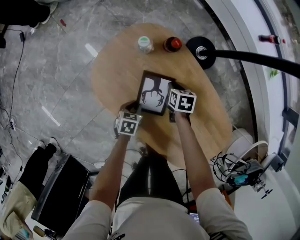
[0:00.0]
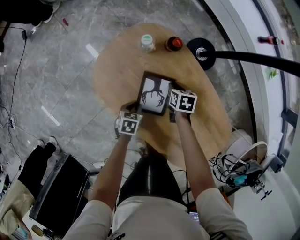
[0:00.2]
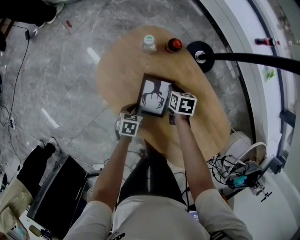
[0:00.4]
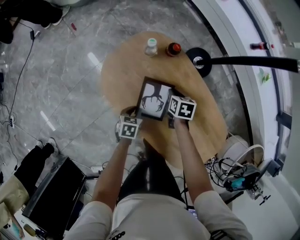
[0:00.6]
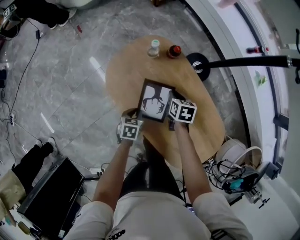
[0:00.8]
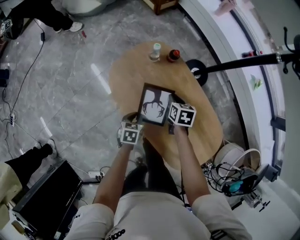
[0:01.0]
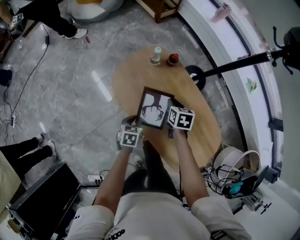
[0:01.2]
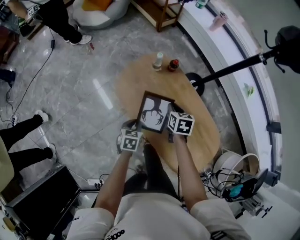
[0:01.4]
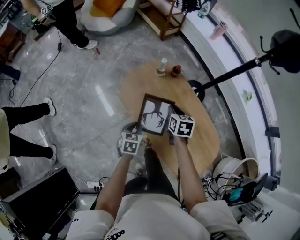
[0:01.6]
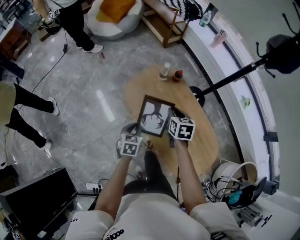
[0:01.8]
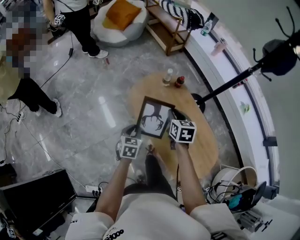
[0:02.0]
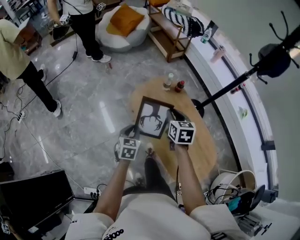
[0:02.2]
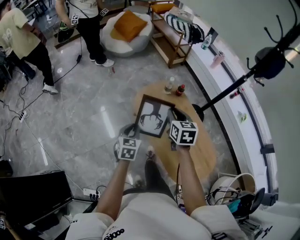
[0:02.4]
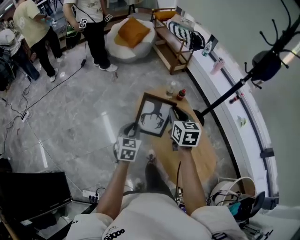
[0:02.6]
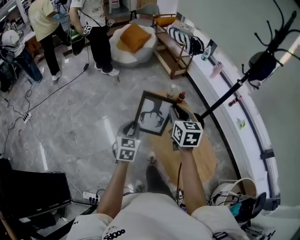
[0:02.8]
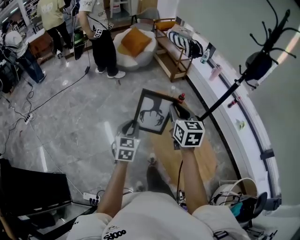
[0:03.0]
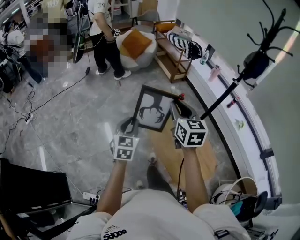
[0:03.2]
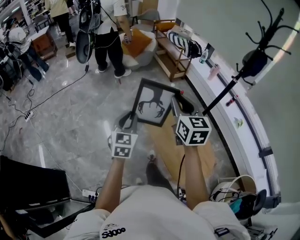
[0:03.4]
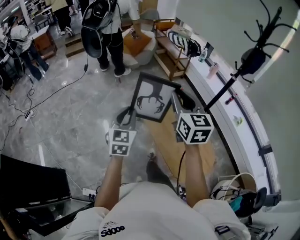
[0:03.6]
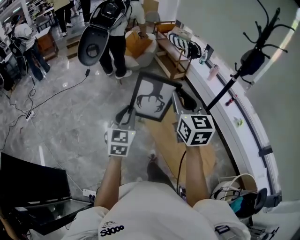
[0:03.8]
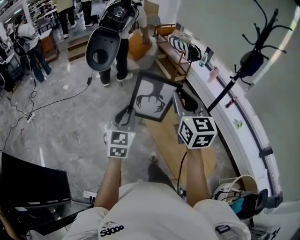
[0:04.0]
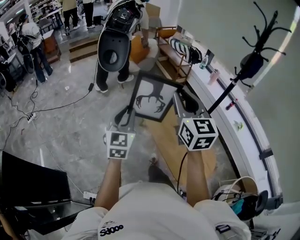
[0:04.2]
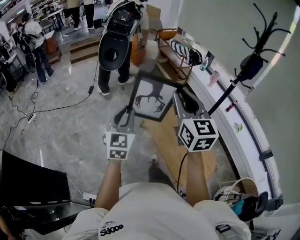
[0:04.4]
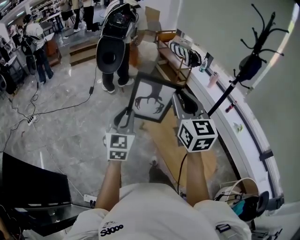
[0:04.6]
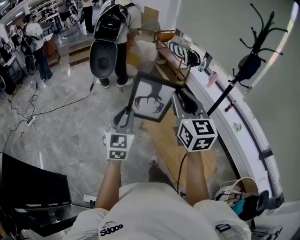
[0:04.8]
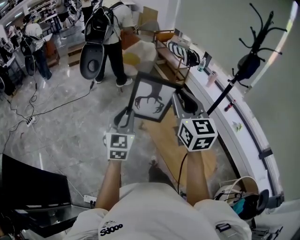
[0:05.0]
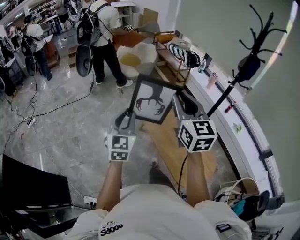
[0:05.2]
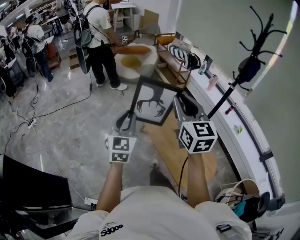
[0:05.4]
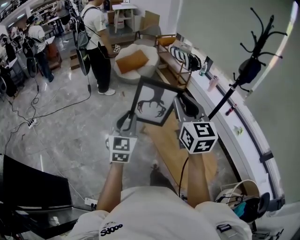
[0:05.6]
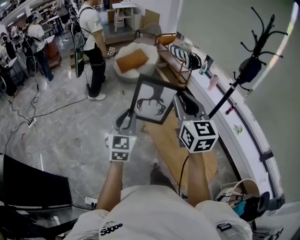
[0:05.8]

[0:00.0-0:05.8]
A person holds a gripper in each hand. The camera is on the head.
0:00.0 to 0:01.4: The two grippers go roughly 25 cm upward and backward.
0:01.4 to 0:02.8: Both grippers travel together upward, some 30 cm. The right gripper changes its angle by about 40 degrees; the left gripper turns by roughly 30 degrees.
0:02.8 to 0:04.4: Both grippers move upward and backward, about 25 cm. The left gripper swivels some 20 degrees, while the right gripper swivels about 30 degrees.
0:04.4 to 0:05.8: The two grippers keep their place.

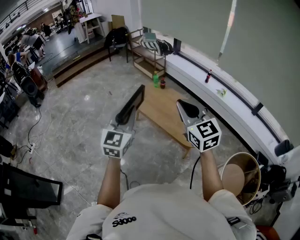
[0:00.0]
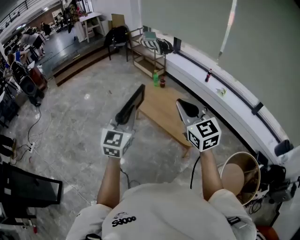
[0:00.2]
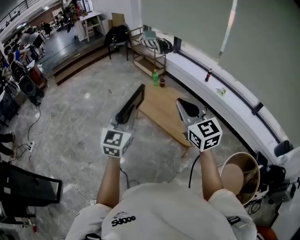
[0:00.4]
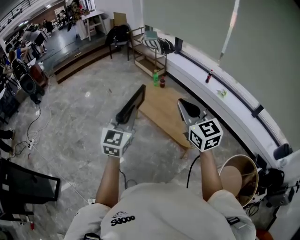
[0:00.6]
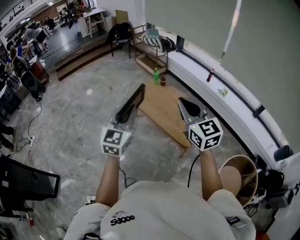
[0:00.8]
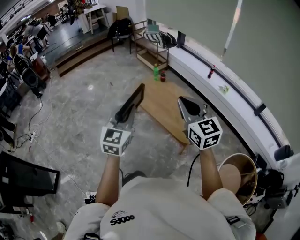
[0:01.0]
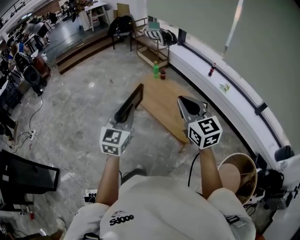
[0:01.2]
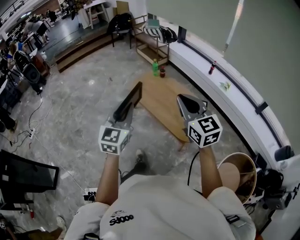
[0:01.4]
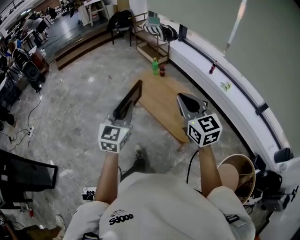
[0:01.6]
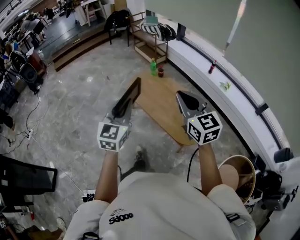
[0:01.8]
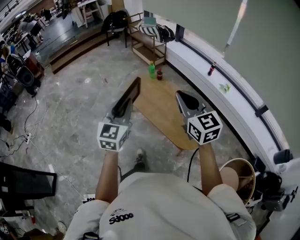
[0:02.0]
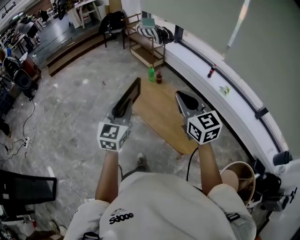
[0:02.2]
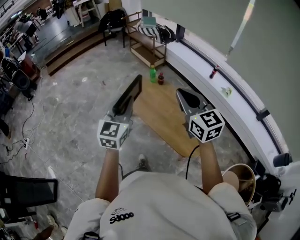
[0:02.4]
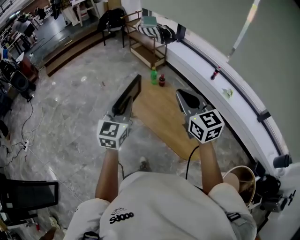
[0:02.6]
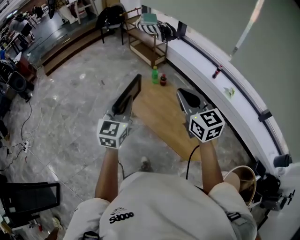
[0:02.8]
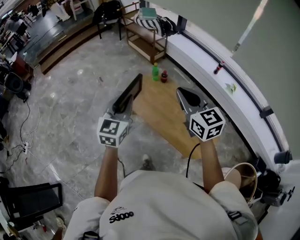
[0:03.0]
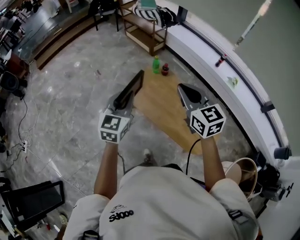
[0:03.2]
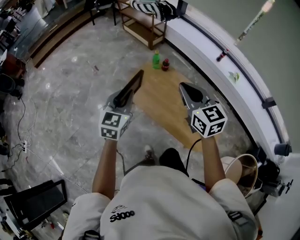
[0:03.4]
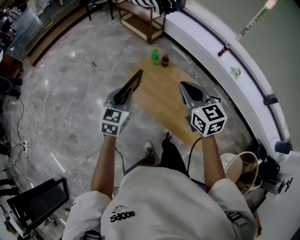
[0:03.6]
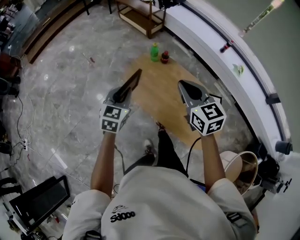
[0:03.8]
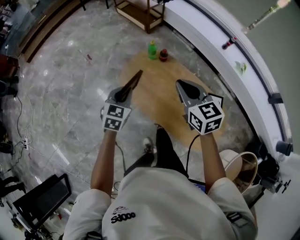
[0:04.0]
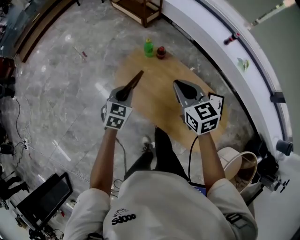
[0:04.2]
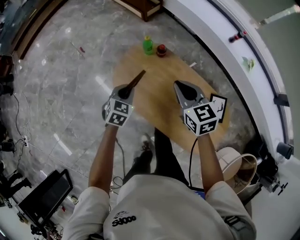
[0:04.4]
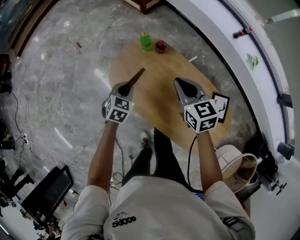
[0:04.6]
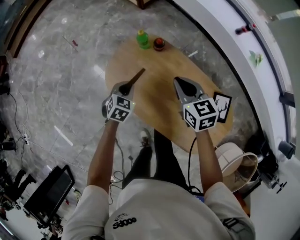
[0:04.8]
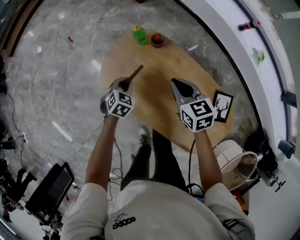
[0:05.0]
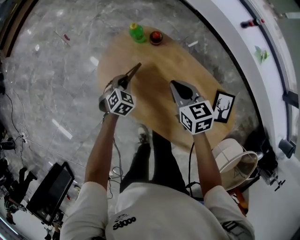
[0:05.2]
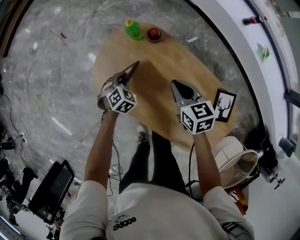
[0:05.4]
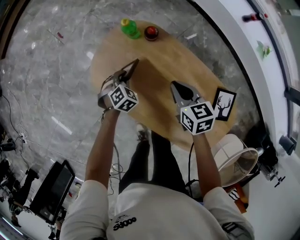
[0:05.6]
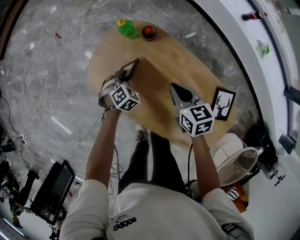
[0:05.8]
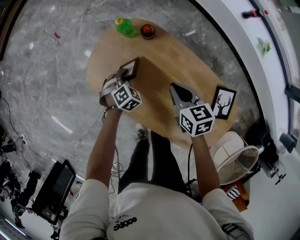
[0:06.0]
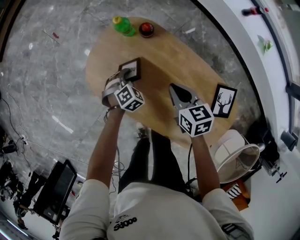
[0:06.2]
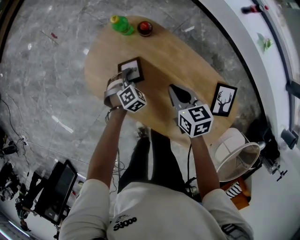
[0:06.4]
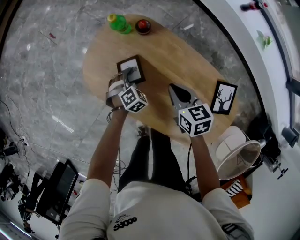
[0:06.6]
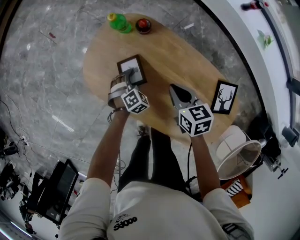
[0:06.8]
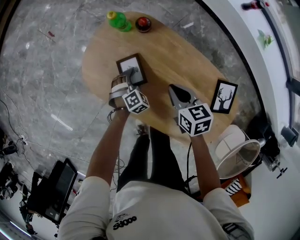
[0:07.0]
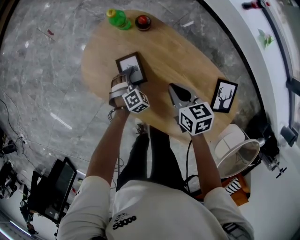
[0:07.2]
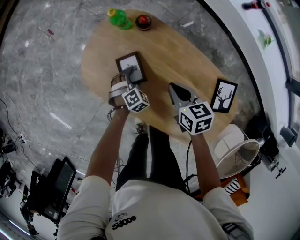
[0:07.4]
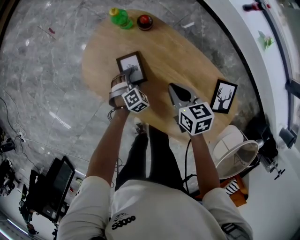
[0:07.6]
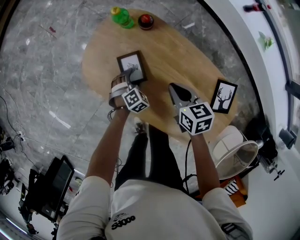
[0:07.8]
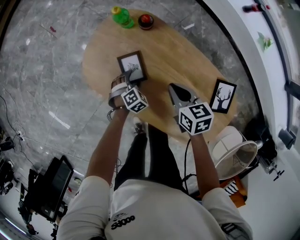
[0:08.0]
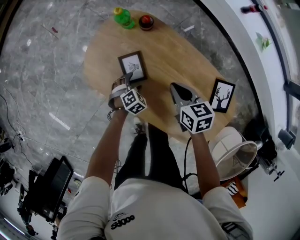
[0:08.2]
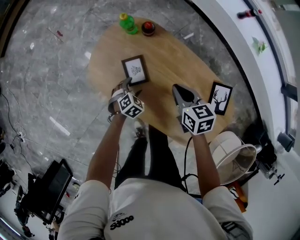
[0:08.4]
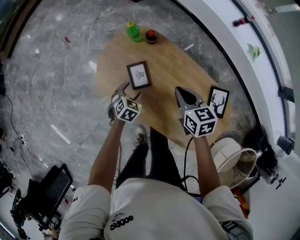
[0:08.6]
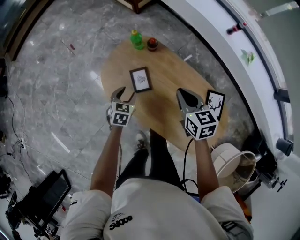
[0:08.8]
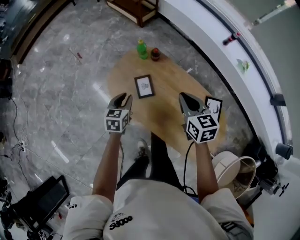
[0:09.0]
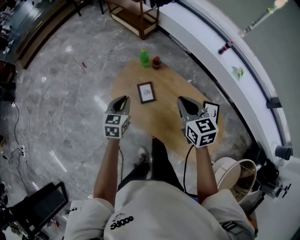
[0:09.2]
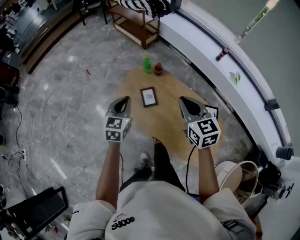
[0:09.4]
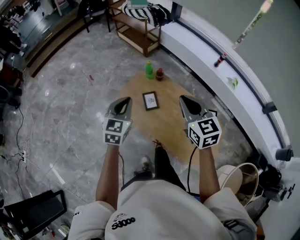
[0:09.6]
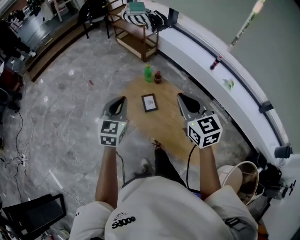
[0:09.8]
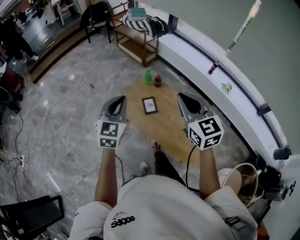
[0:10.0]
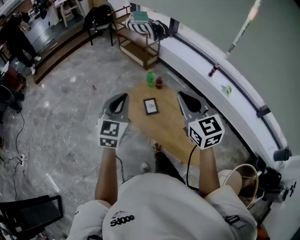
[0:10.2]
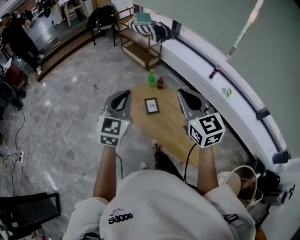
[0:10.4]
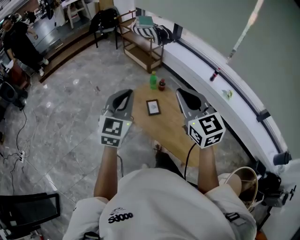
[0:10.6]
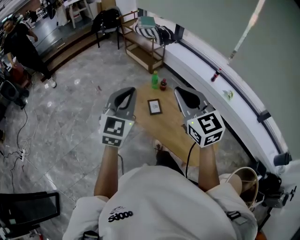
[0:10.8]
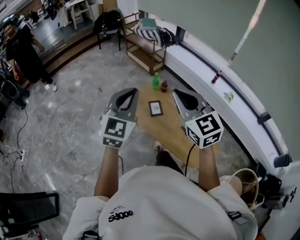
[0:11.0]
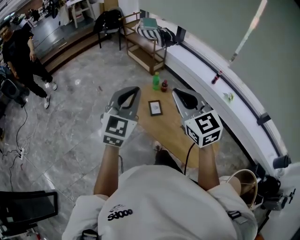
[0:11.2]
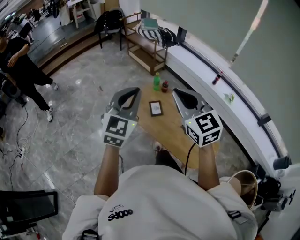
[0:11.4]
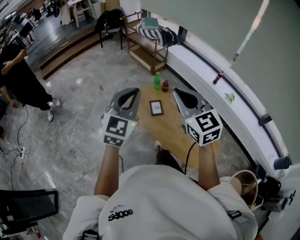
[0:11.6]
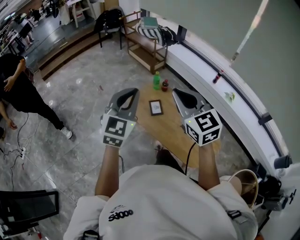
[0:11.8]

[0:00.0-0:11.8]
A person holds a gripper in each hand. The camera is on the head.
0:00.0 to 0:01.4: The grippers both shift to the right by some 10 cm.
0:01.4 to 0:03.0: Both grippers move forward, approximately 35 cm.
0:03.0 to 0:04.4: Both grippers travel together downward and forward, roughly 40 cm. The right gripper changes its angle by roughly 20 degrees. Meanwhile the left gripper points its fingers roughly 40 degrees further downward.
0:04.4 to 0:06.0: The grippers both shift downward by about 25 cm. The right gripper rotates some 20 degrees. The left gripper rotates about 30 degrees.
0:06.0 to 0:07.4: The left gripper is displaced backward and downward by roughly 10 cm, and opens up.
0:07.4 to 0:08.8: Both grippers travel together upward, approximately 20 cm. The left gripper rotates around the line of its fingers by some 40 degrees, counterclockwise from behind.
0:08.8 to 0:10.4: The left gripper travels upward by roughly 50 cm, tips its fingers upward by roughly 40 degrees, and closes, while the right gripper heads upward and backward, covering about 40 cm, and changes its angle by some 40 degrees.
0:10.4 to 0:11.8: The right gripper changes place by some 5 cm; the left gripper shifts by about 5 cm.

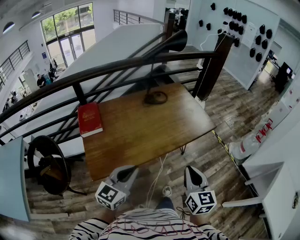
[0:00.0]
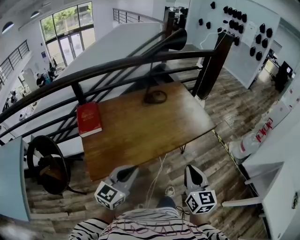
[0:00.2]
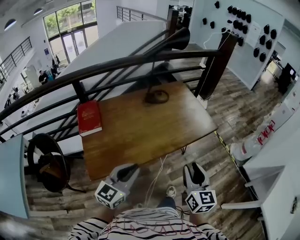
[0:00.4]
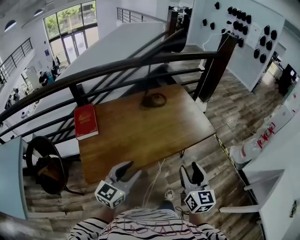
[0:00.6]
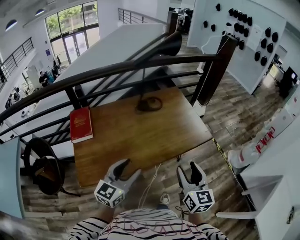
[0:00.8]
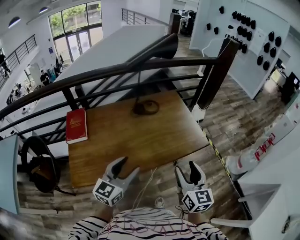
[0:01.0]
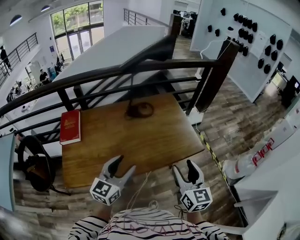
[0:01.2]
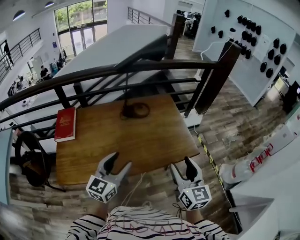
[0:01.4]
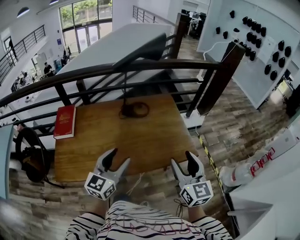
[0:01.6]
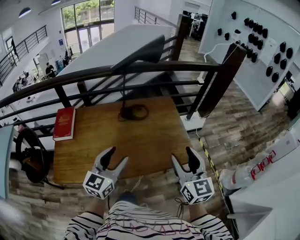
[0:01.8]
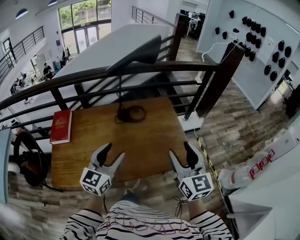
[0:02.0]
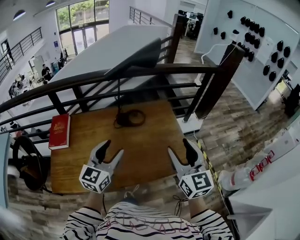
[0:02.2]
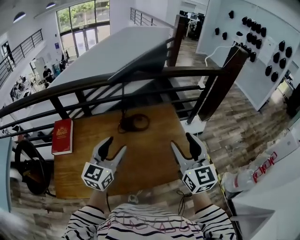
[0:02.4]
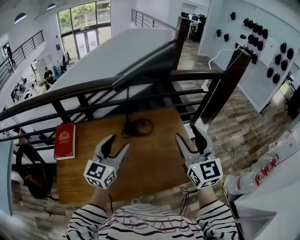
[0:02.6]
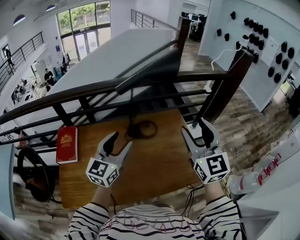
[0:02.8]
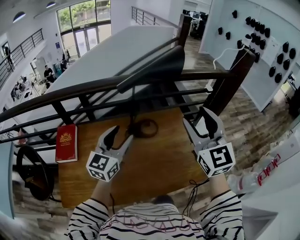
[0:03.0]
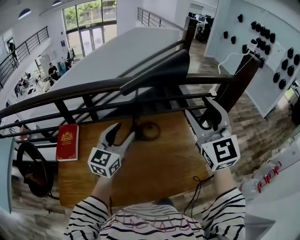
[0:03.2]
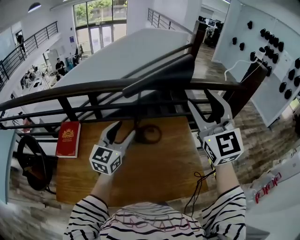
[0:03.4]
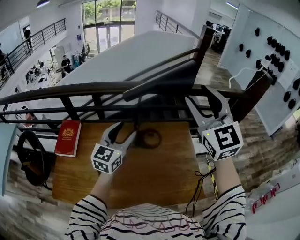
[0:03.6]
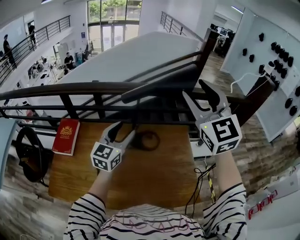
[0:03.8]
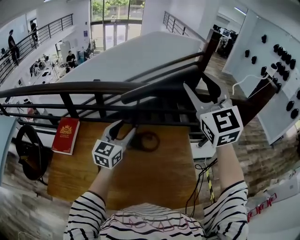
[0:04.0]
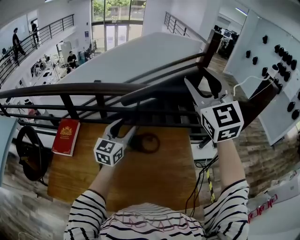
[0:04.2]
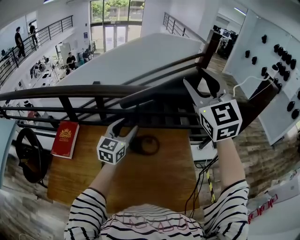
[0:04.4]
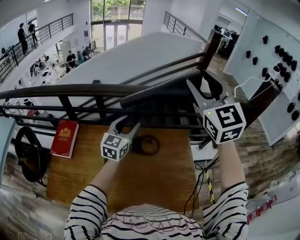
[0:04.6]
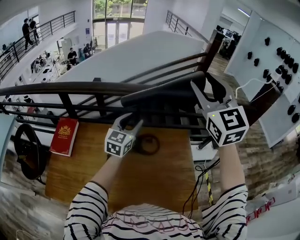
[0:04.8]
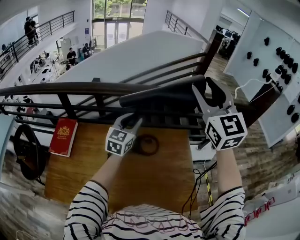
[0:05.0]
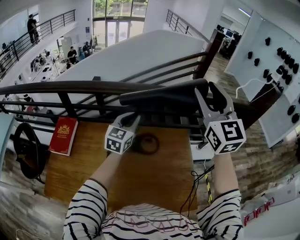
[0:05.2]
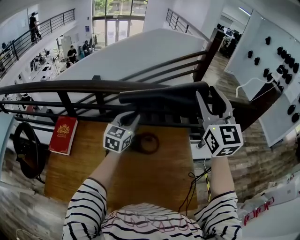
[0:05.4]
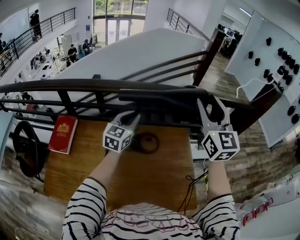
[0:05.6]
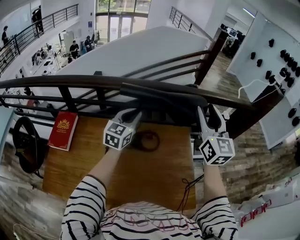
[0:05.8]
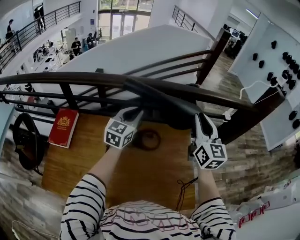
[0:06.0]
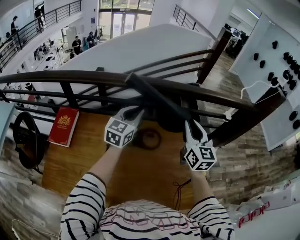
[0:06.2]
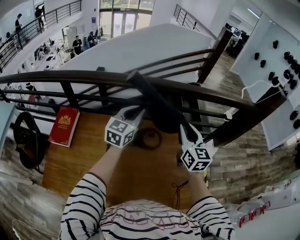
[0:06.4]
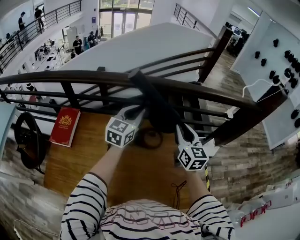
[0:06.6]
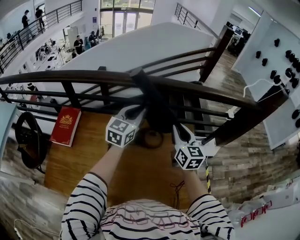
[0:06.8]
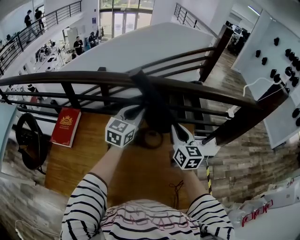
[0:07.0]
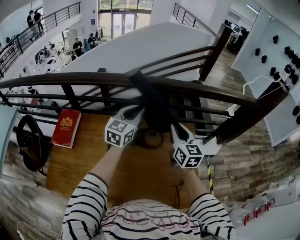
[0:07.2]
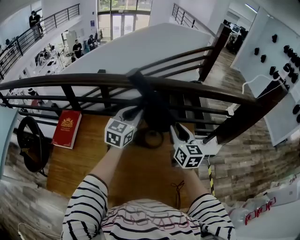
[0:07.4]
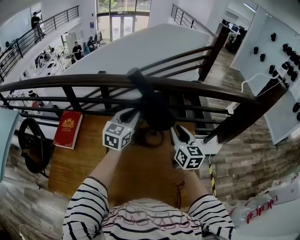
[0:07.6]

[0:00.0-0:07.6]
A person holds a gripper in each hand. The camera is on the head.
0:00.0 to 0:01.6: The grippers both shift forward and to the right by some 35 cm. The left gripper turns by about 20 degrees, and opens. The right gripper opens up.
0:01.6 to 0:03.0: The left gripper heads forward, covering approximately 25 cm, while the right gripper travels forward and upward by some 30 cm, and rotates about 20 degrees.
0:03.0 to 0:04.6: The left gripper is displaced forward by approximately 20 cm; the right gripper travels forward and upward by some 25 cm.
0:04.6 to 0:06.0: The left gripper closes its fingers, while the right gripper goes roughly 20 cm downward, rotates approximately 30 degrees, and closes its fingers.
0:06.0 to 0:07.6: The right gripper travels downward and to the left by about 15 cm.
